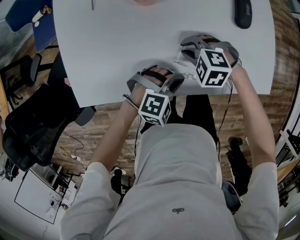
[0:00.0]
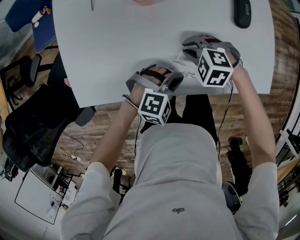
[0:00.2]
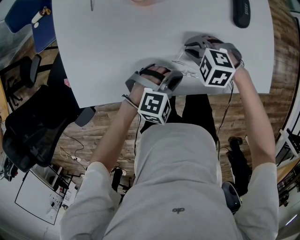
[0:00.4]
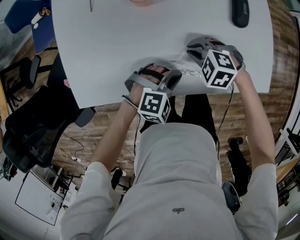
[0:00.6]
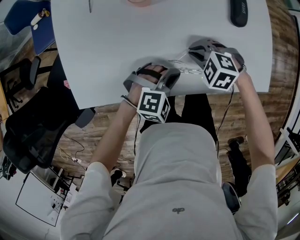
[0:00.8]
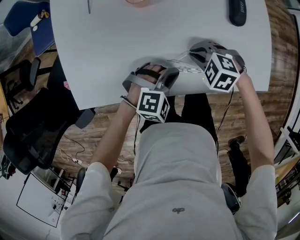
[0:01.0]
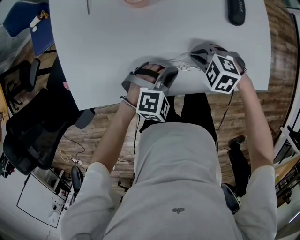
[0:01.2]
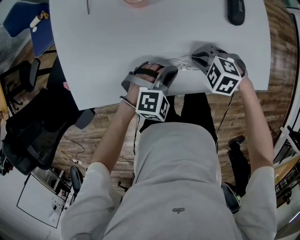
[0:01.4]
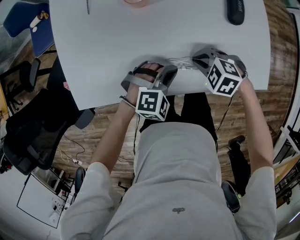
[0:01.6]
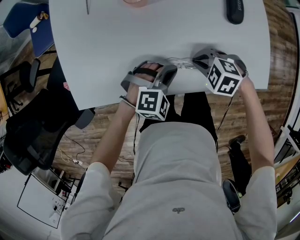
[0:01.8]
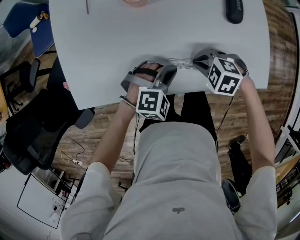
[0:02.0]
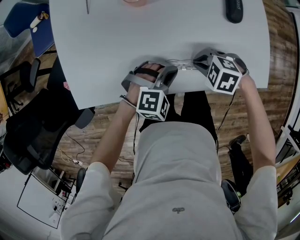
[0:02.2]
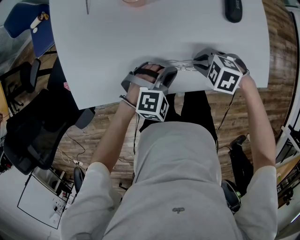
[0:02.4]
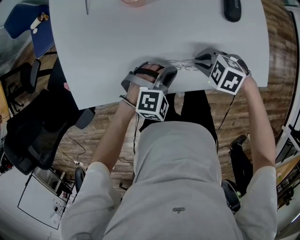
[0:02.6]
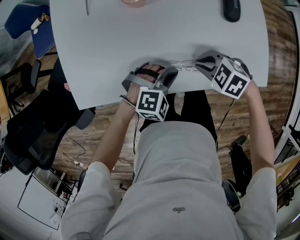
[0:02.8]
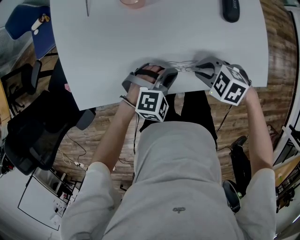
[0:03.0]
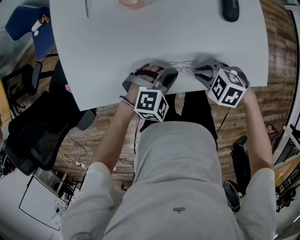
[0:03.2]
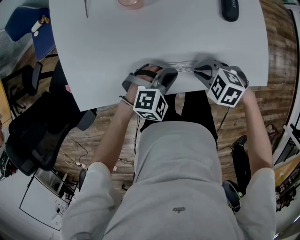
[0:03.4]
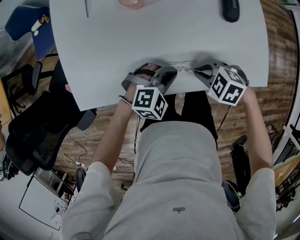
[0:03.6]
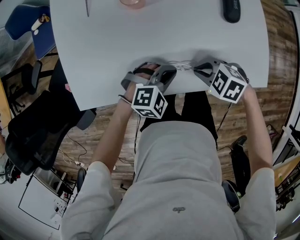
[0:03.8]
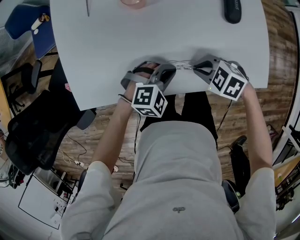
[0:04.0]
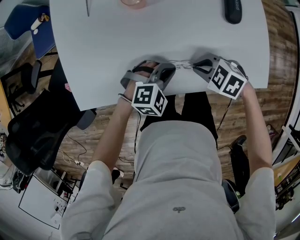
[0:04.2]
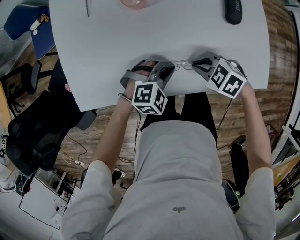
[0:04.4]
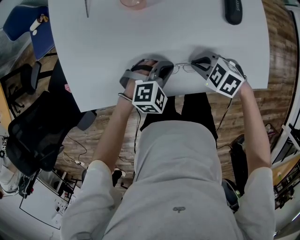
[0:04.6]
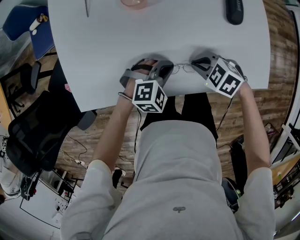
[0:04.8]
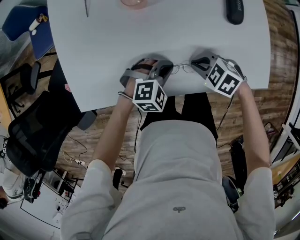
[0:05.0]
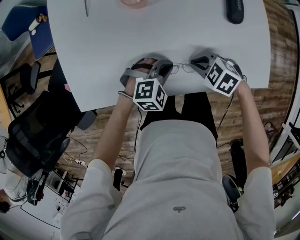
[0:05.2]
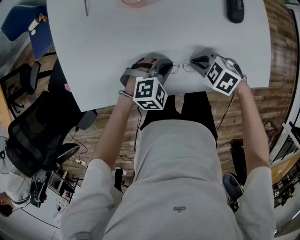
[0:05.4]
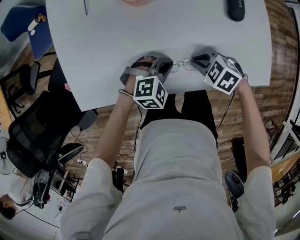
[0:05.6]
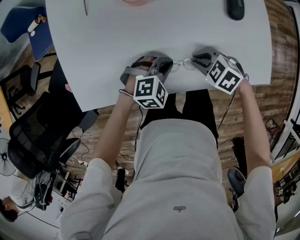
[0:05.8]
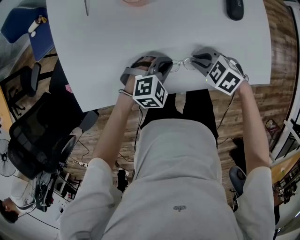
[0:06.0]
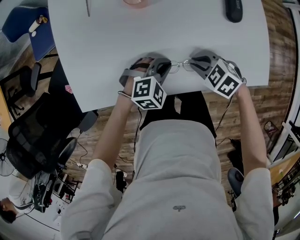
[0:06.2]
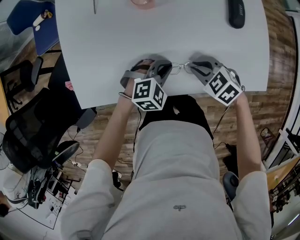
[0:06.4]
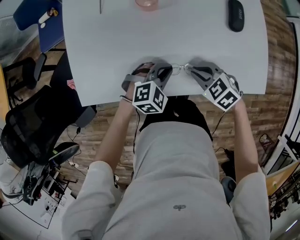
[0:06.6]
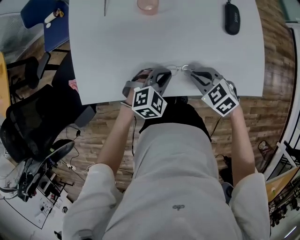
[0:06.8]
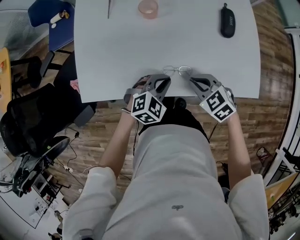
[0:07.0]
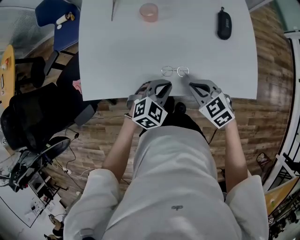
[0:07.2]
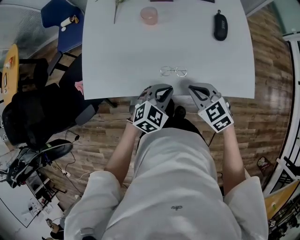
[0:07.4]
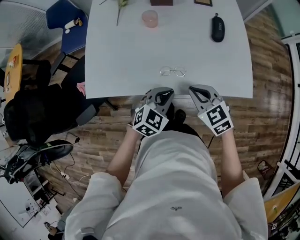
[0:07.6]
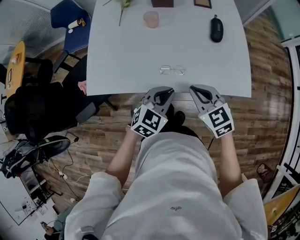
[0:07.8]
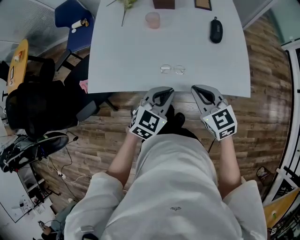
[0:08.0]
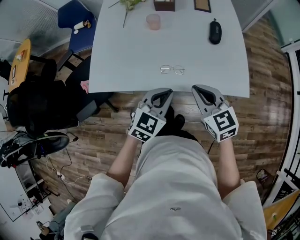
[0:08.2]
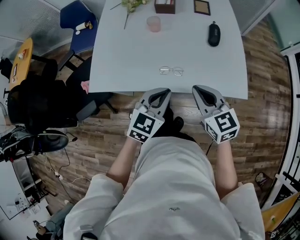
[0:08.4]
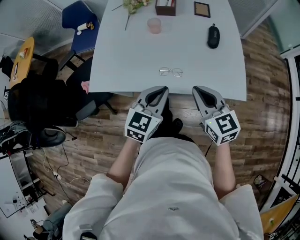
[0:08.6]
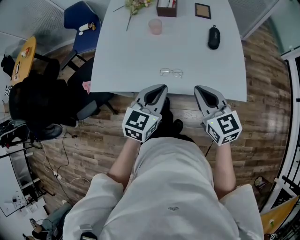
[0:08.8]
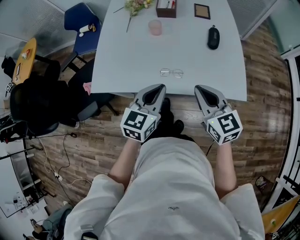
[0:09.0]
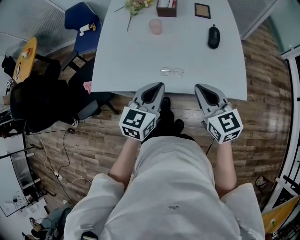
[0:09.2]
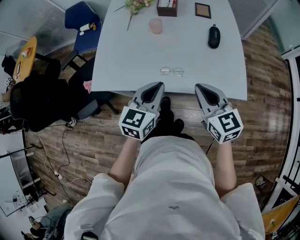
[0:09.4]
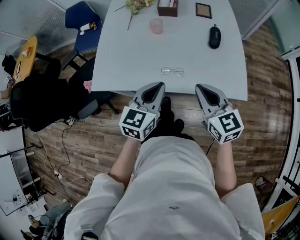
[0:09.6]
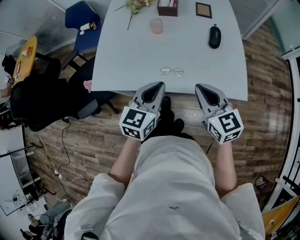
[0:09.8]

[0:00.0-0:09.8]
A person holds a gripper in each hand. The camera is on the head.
0:00.0 to 0:01.4: The right gripper moves some 5 cm.
0:01.4 to 0:02.8: There are only small adjustments of the grippers.
0:02.8 to 0:05.6: The grippers stay close to where they were, moving slightly.
0:05.6 to 0:07.0: Both grippers travel together upward, roughly 5 cm. The left gripper swivels approximately 20 degrees.
0:07.0 to 0:08.4: Both grippers move upward and backward, about 20 cm. The right gripper turns by about 30 degrees, while the left gripper turns by approximately 30 degrees.
0:08.4 to 0:09.8: The grippers move only a little.

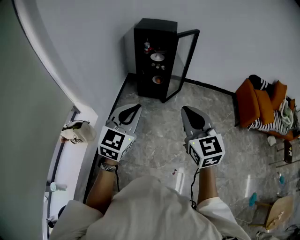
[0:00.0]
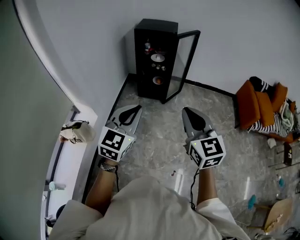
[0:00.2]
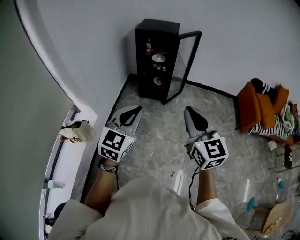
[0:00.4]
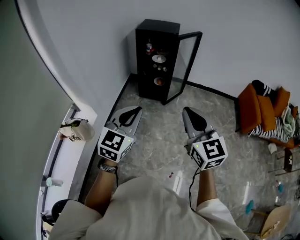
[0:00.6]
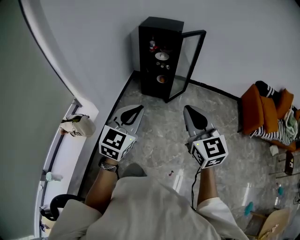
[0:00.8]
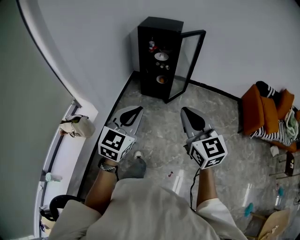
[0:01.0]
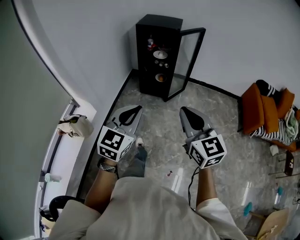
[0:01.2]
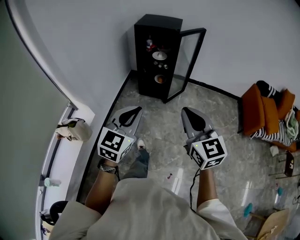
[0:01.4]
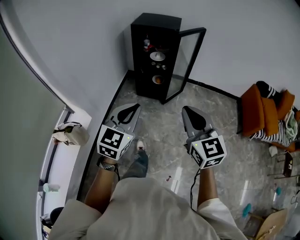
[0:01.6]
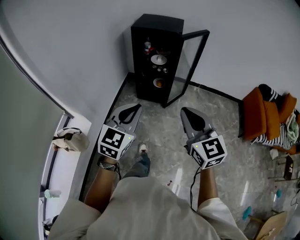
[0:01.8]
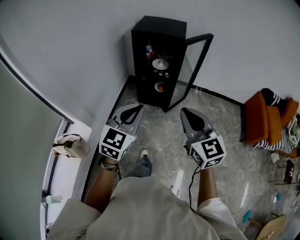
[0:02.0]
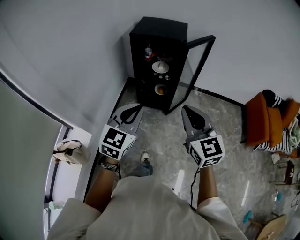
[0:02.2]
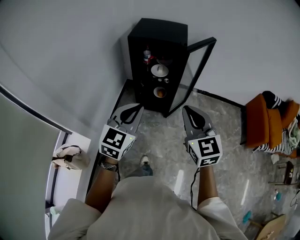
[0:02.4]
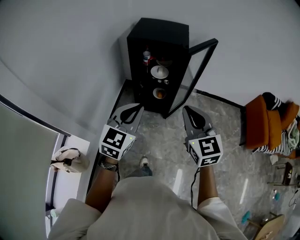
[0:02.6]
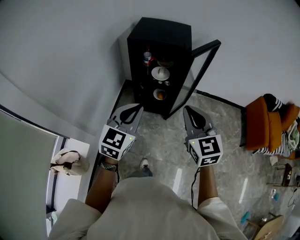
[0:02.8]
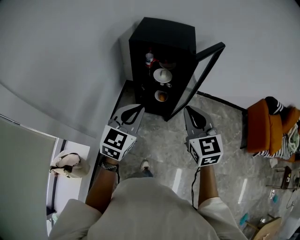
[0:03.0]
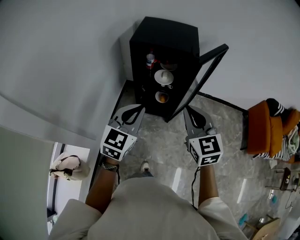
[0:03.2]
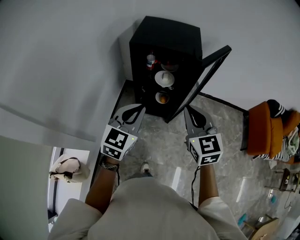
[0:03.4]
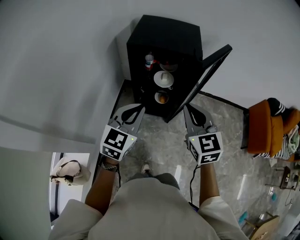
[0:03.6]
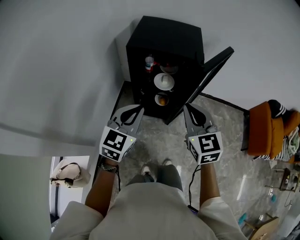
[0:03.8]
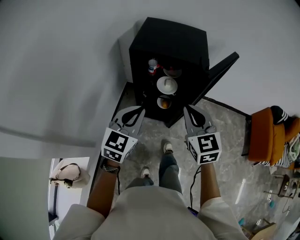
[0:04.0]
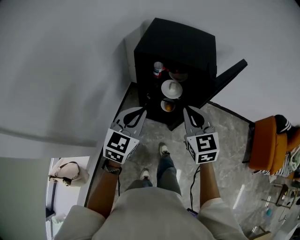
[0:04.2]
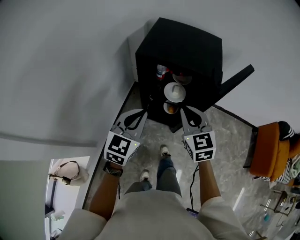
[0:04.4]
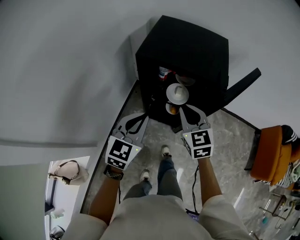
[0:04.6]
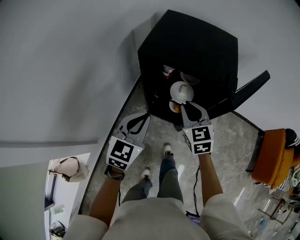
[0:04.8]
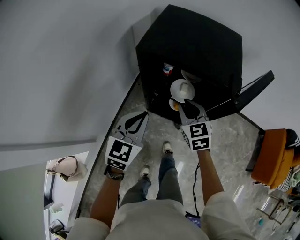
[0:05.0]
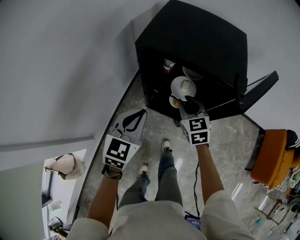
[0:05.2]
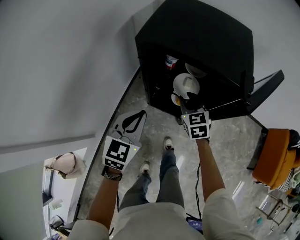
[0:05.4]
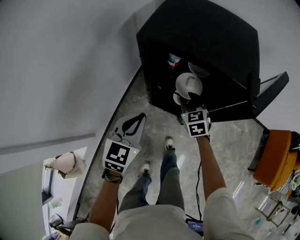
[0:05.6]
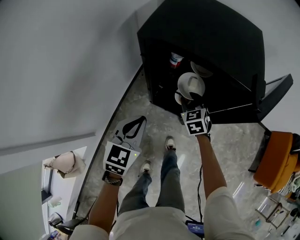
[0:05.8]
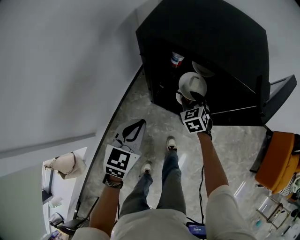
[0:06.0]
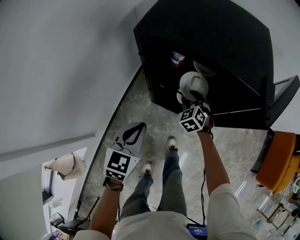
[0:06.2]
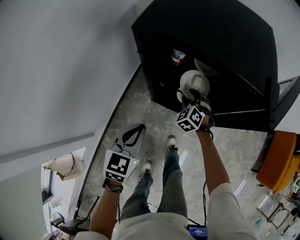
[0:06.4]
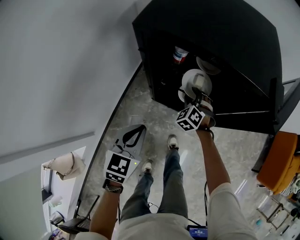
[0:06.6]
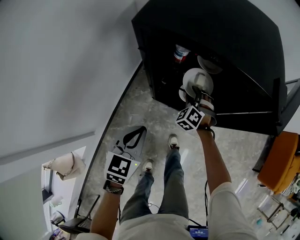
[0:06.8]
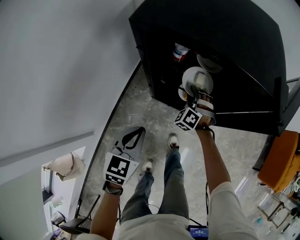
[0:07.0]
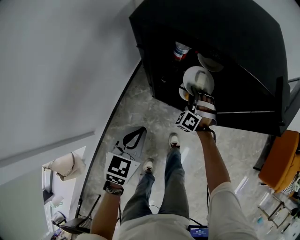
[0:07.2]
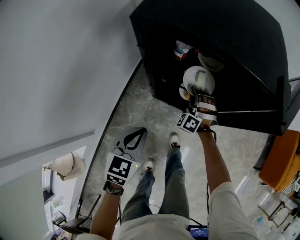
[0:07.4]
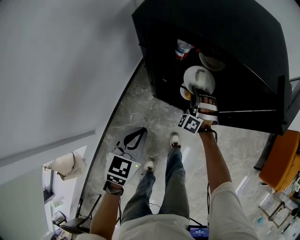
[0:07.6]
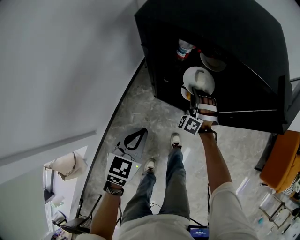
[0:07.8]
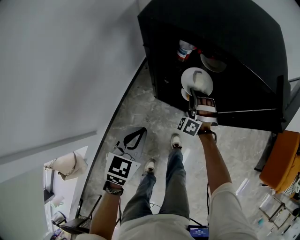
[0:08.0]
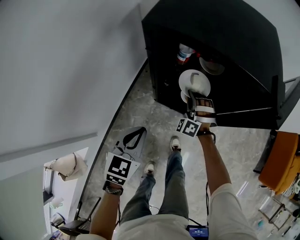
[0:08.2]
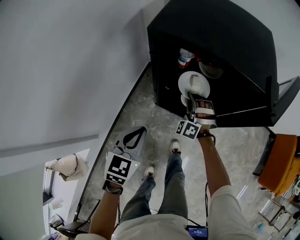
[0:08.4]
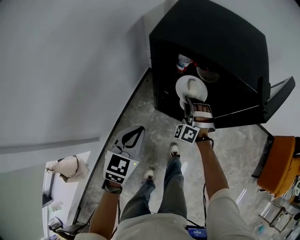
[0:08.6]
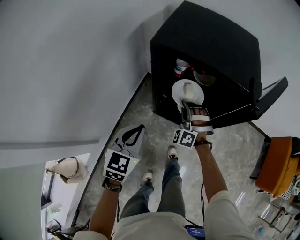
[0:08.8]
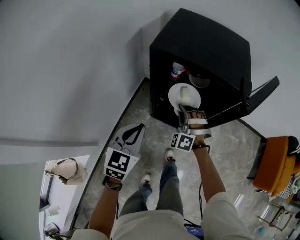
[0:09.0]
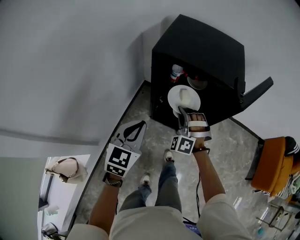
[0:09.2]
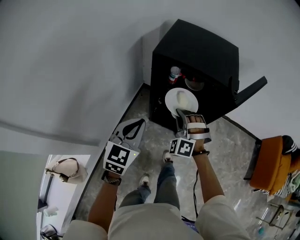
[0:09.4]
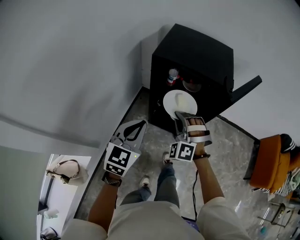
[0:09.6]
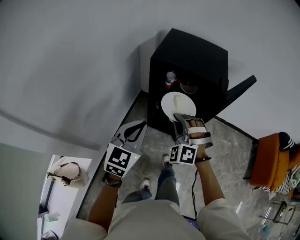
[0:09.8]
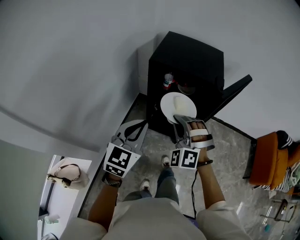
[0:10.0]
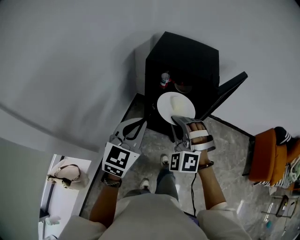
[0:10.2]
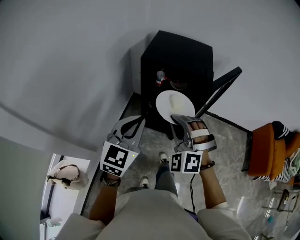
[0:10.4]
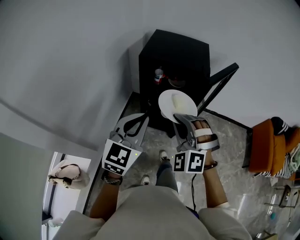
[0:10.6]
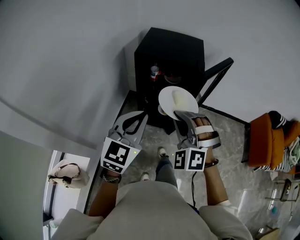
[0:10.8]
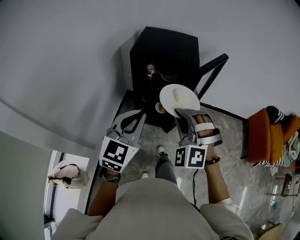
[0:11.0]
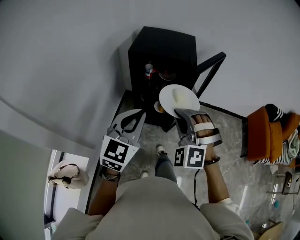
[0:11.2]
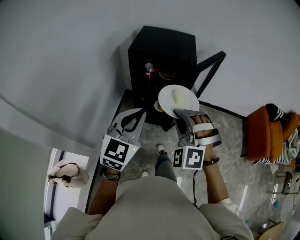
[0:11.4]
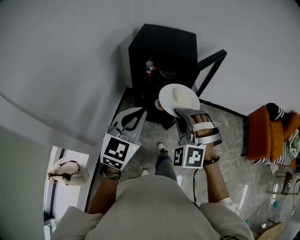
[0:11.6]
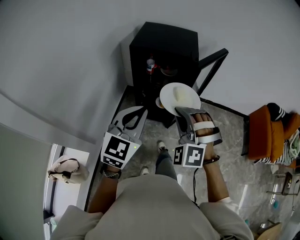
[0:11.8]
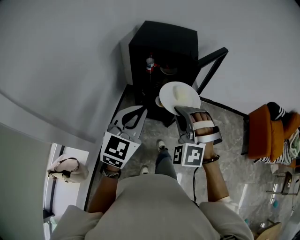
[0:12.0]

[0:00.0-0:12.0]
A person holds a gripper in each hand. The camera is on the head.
0:00.0 to 0:01.6: The left gripper moves forward, about 10 cm; the right gripper heads forward and to the right, covering about 10 cm.
0:01.6 to 0:03.0: Both grippers travel together forward, approximately 20 cm.
0:03.0 to 0:04.4: Both grippers travel together forward, approximately 15 cm.
0:04.4 to 0:06.0: The right gripper moves downward and forward, roughly 30 cm, rotates some 30 degrees, and opens; the left gripper is displaced downward by some 15 cm.
0:06.0 to 0:07.6: The left gripper travels downward by some 5 cm, while the right gripper rotates around the line of its fingers by about 50 degrees, counterclockwise from behind, and closes up.
0:07.6 to 0:09.0: The right gripper moves upward and backward, about 15 cm; the left gripper shifts about 10 cm upward.
0:09.0 to 0:10.4: The right gripper is displaced upward and backward by some 30 cm; the left gripper goes about 15 cm upward and backward.
0:10.4 to 0:12.0: The left gripper travels to the right by roughly 5 cm; the right gripper heads to the right and backward, covering about 10 cm.

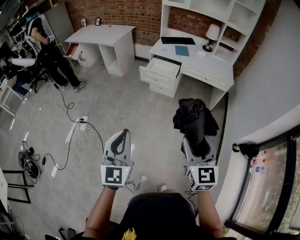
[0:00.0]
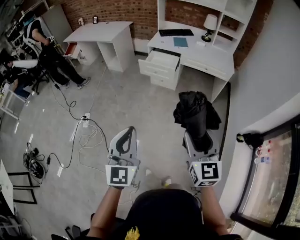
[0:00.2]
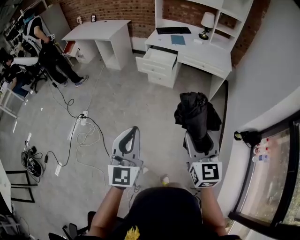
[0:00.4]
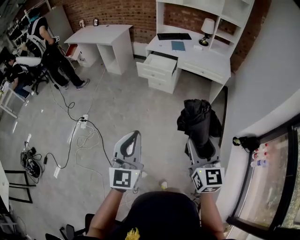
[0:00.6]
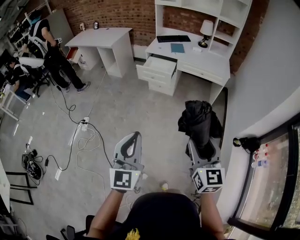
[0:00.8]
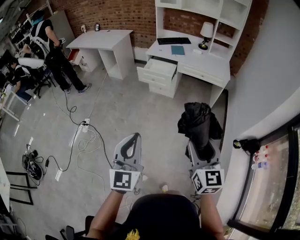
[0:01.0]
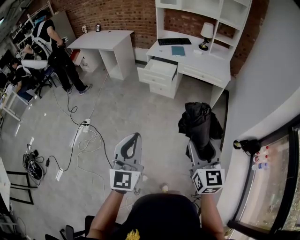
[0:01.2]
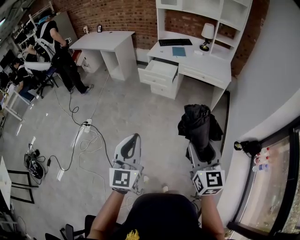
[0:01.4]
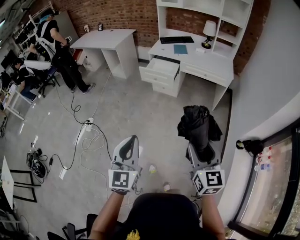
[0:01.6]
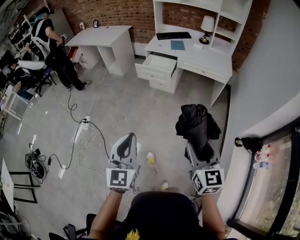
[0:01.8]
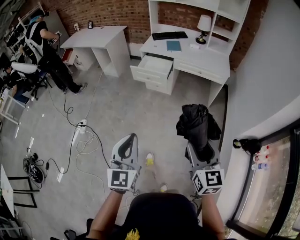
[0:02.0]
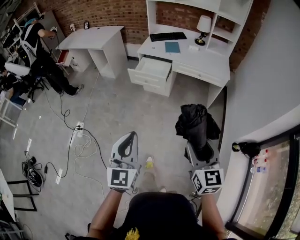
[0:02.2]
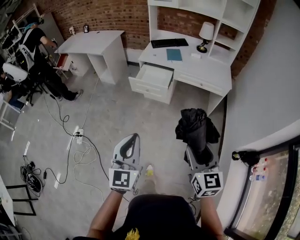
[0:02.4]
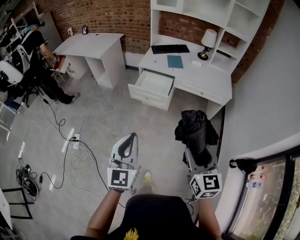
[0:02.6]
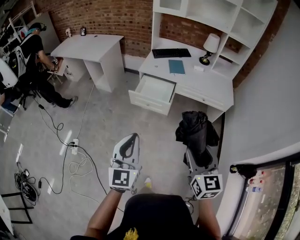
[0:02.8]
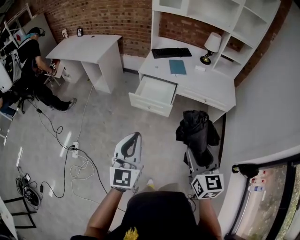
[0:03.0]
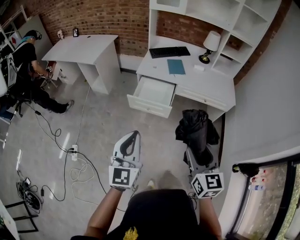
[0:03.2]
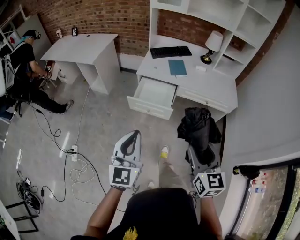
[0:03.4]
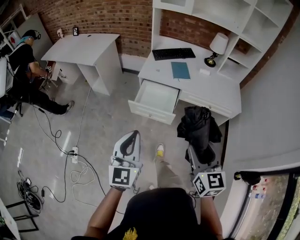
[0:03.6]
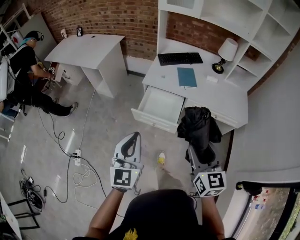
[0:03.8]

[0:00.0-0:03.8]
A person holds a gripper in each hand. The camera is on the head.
0:00.0 to 0:01.2: The grippers both shift to the right and backward by roughly 10 cm.
0:01.2 to 0:02.6: The grippers both shift forward by roughly 25 cm.
0:02.6 to 0:03.8: The grippers both shift forward by approximately 30 cm.
